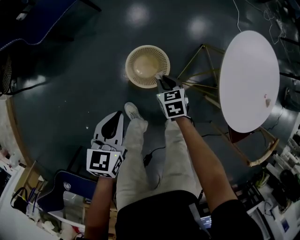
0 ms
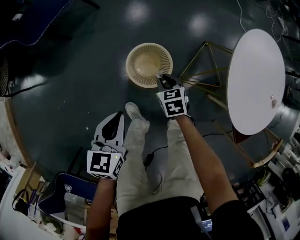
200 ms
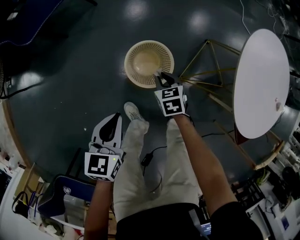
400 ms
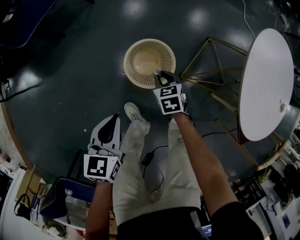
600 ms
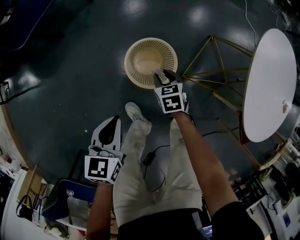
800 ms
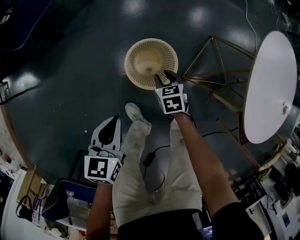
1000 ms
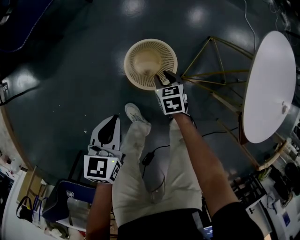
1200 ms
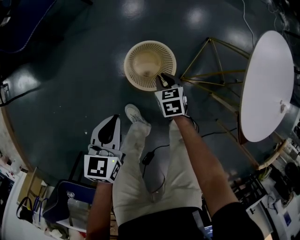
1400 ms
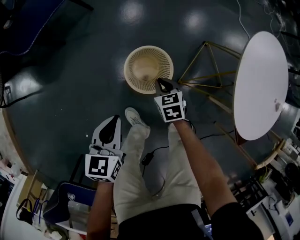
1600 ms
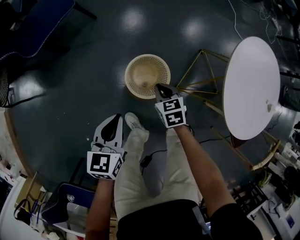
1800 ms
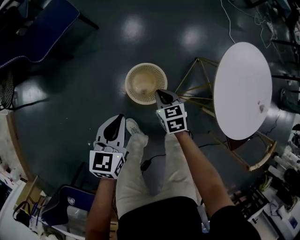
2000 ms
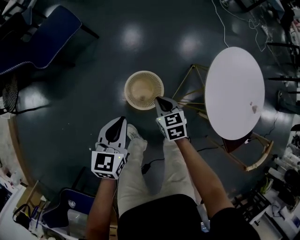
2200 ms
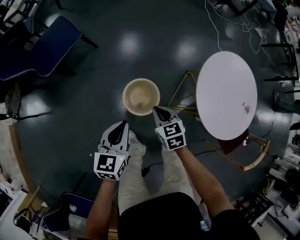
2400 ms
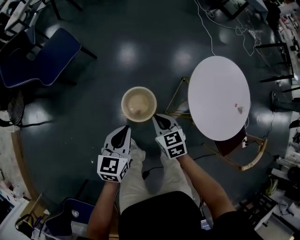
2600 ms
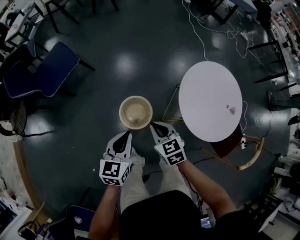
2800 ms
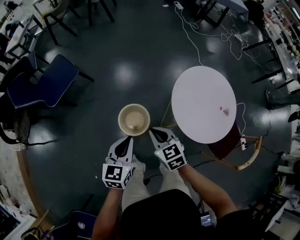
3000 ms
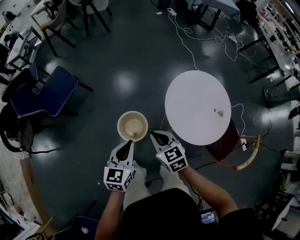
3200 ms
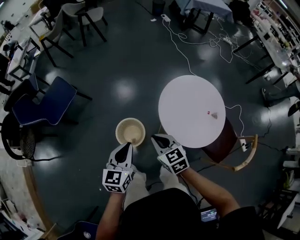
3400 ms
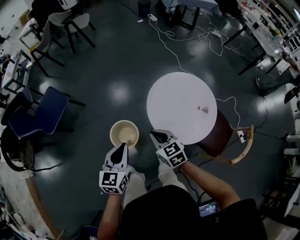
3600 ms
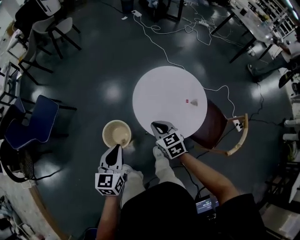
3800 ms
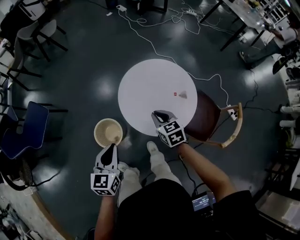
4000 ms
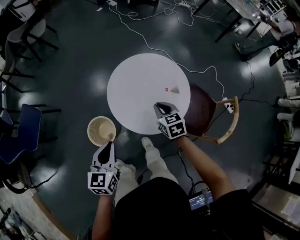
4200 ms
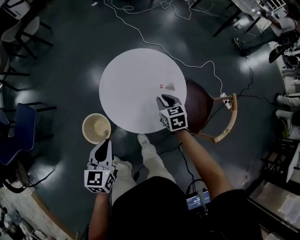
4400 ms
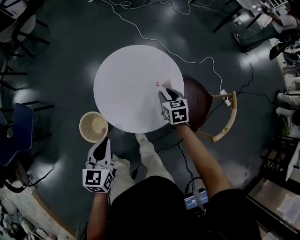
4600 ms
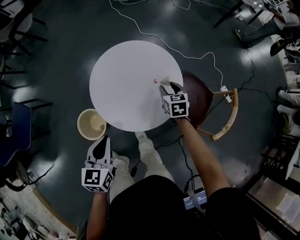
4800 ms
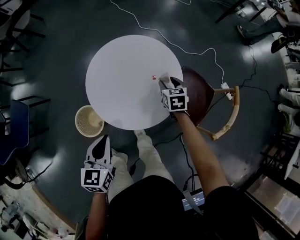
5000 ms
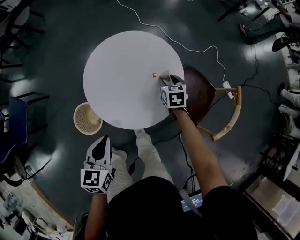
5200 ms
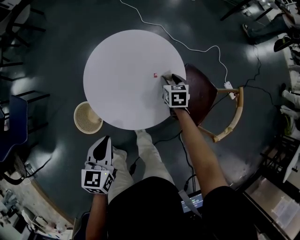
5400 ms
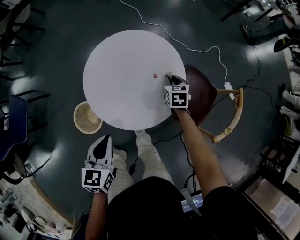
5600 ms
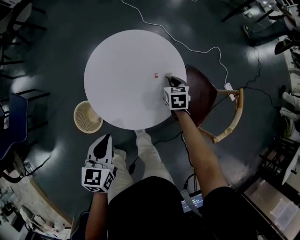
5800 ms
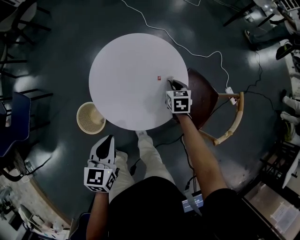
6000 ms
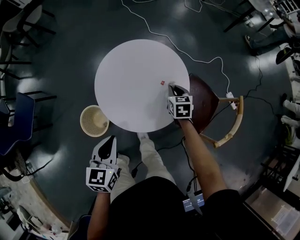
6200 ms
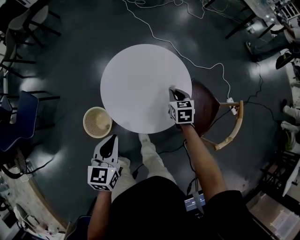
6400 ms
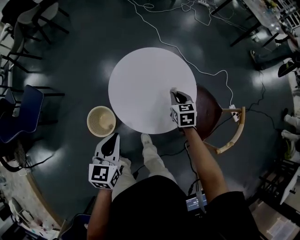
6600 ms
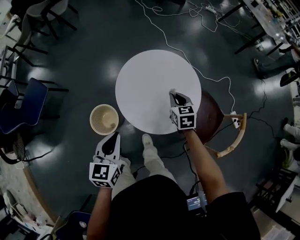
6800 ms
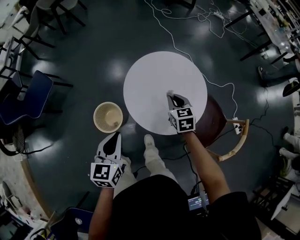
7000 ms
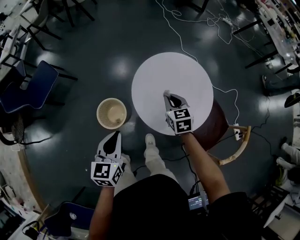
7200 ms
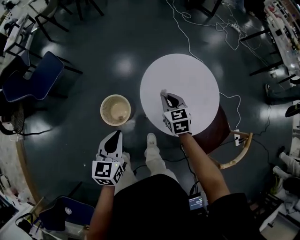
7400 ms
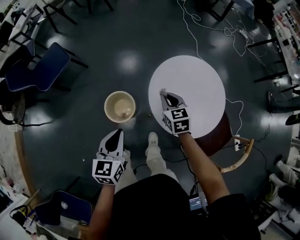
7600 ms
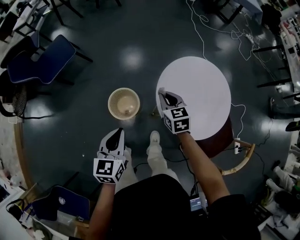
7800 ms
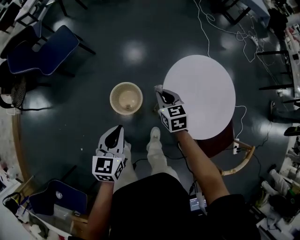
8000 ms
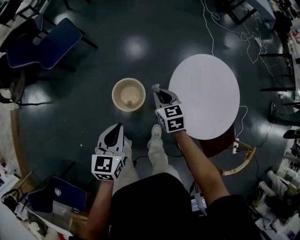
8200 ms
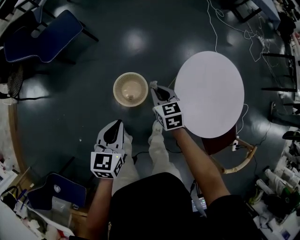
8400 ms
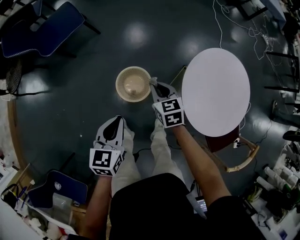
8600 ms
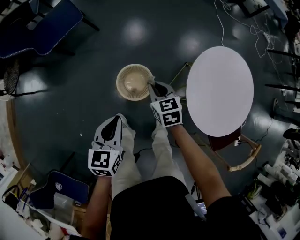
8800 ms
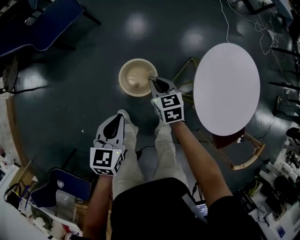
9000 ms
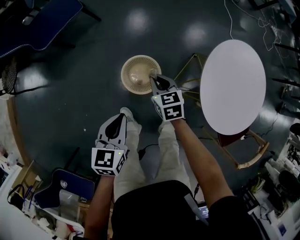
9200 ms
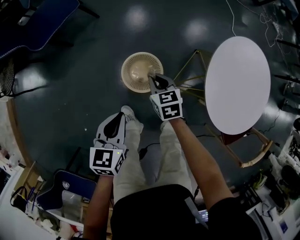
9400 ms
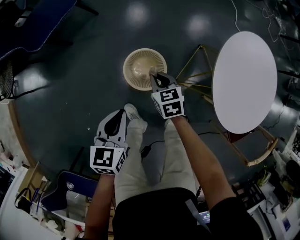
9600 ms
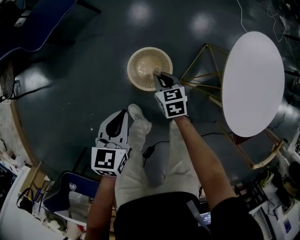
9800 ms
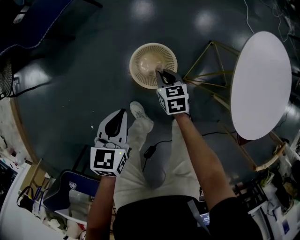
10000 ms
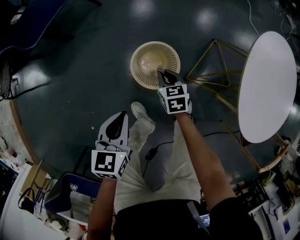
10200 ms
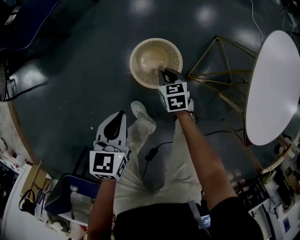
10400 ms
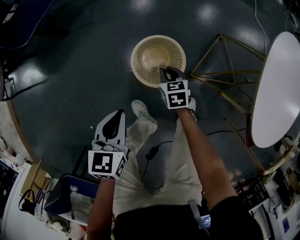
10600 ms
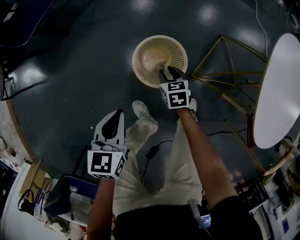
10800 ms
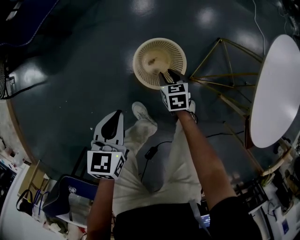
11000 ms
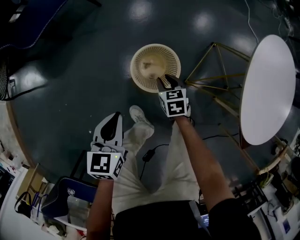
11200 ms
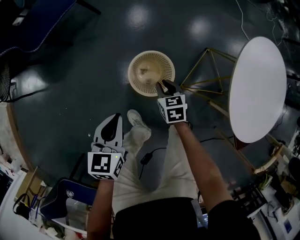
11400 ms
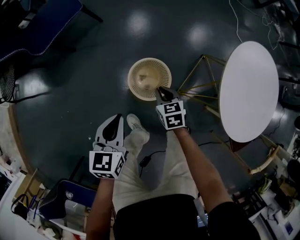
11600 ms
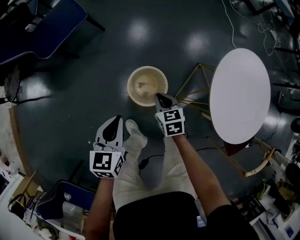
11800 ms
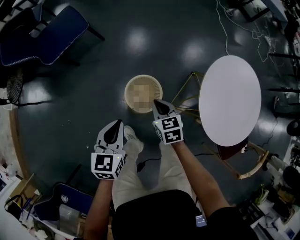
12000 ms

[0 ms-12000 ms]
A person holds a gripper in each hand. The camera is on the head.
0 ms to 1600 ms: Both grippers move downward, some 10 cm.
1600 ms to 3000 ms: Both grippers move upward, approximately 40 cm.
3000 ms to 4400 ms: The left gripper reaches about 10 cm upward, then returns; the right gripper ends up roughly 50 cm from where it was, and changes its angle by approximately 40 degrees.
4400 ms to 6000 ms: The left gripper goes roughly 10 cm to the right and downward, while the right gripper goes approximately 15 cm downward, to the right and forward, and opens and closes again.
6000 ms to 7600 ms: The left gripper moves some 25 cm, and changes its angle by approximately 30 degrees. Meanwhile the right gripper ends up about 40 cm from where it was, and swivels some 40 degrees.
7600 ms to 9000 ms: The two grippers go some 30 cm to the left and downward.
9000 ms to 10400 ms: The two grippers go some 25 cm downward.
10400 ms to 12000 ms: The grippers both shift upward by about 25 cm. The right gripper opens, then closes again.

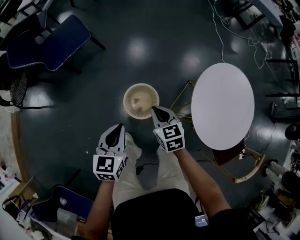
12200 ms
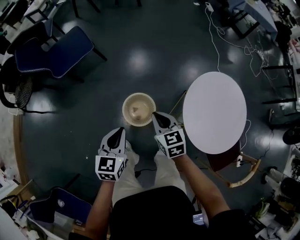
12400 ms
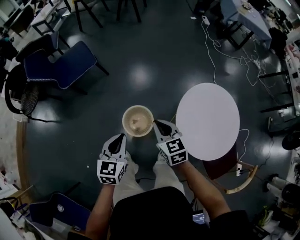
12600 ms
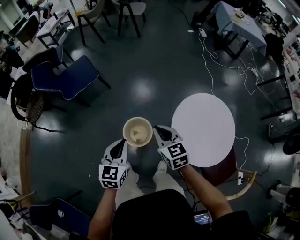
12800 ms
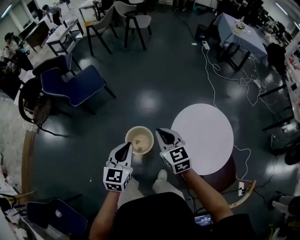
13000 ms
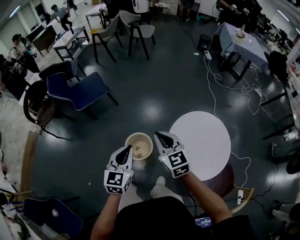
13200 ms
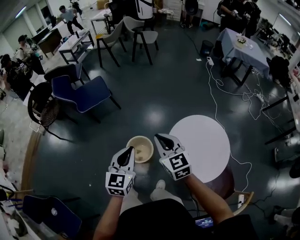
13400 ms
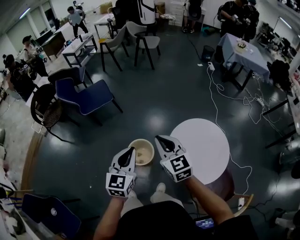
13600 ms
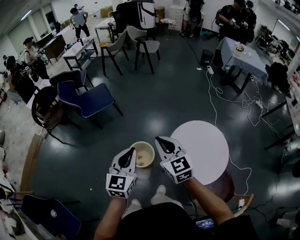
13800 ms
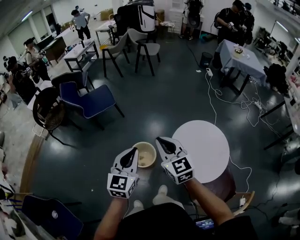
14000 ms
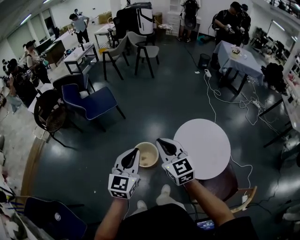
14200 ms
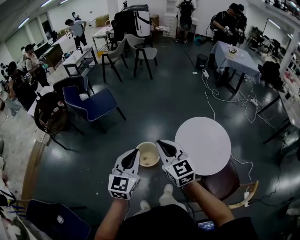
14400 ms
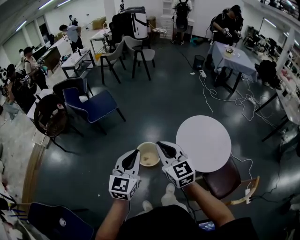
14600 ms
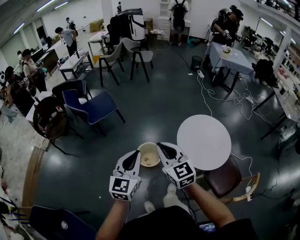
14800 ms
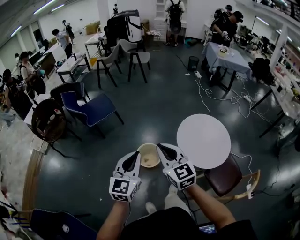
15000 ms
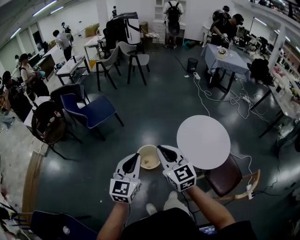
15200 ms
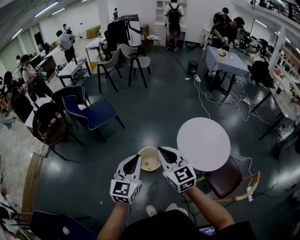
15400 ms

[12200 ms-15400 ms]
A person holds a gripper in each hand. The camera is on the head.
12200 ms to 13800 ms: The right gripper shifts some 40 cm upward, and swivels some 30 degrees, while the left gripper is displaced upward, to the right and backward by approximately 40 cm, and turns by roughly 30 degrees.
13800 ms to 15400 ms: The two grippers go about 25 cm to the left and backward.

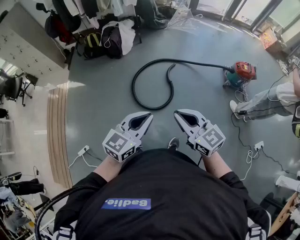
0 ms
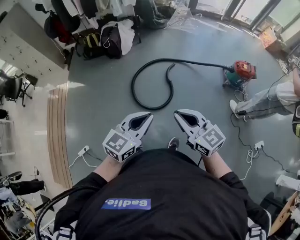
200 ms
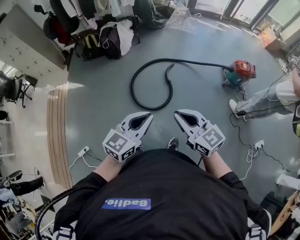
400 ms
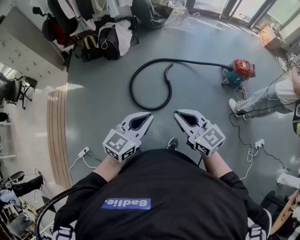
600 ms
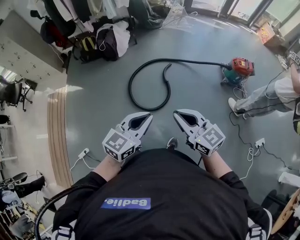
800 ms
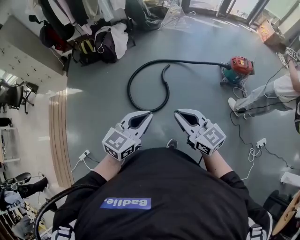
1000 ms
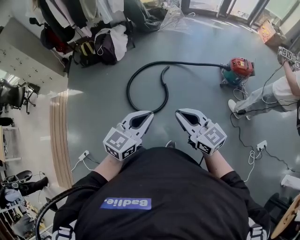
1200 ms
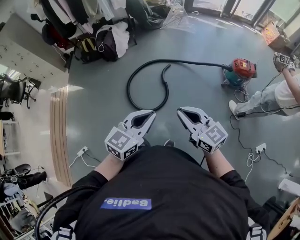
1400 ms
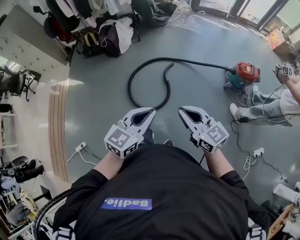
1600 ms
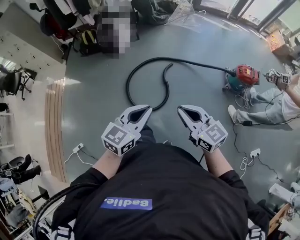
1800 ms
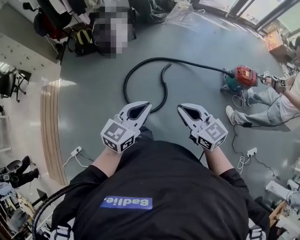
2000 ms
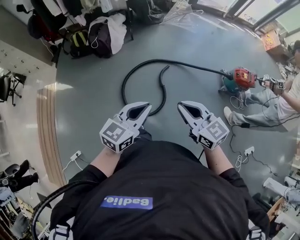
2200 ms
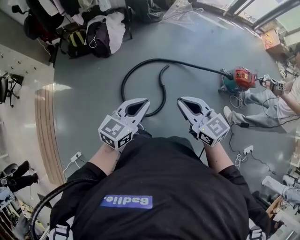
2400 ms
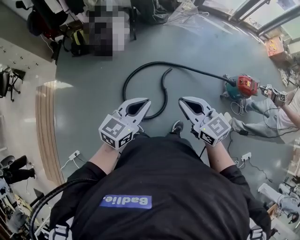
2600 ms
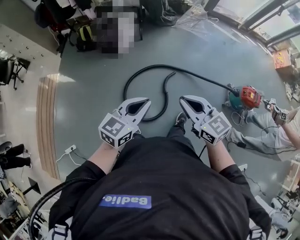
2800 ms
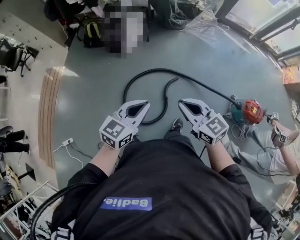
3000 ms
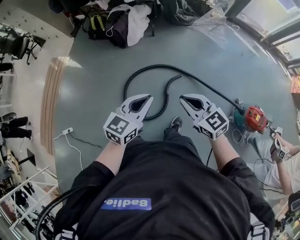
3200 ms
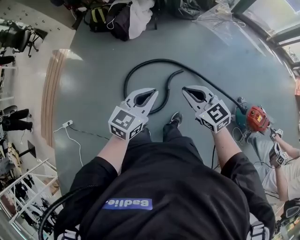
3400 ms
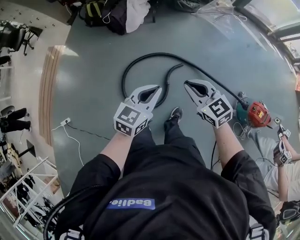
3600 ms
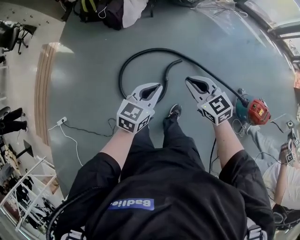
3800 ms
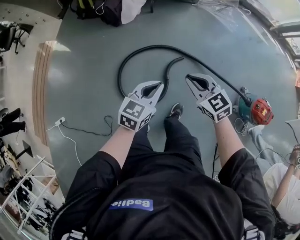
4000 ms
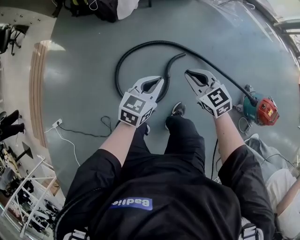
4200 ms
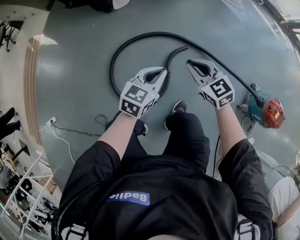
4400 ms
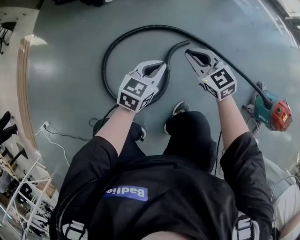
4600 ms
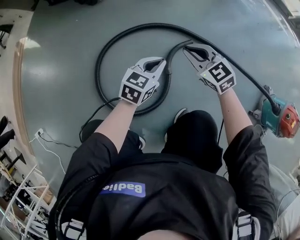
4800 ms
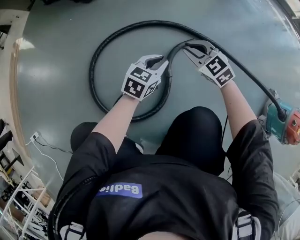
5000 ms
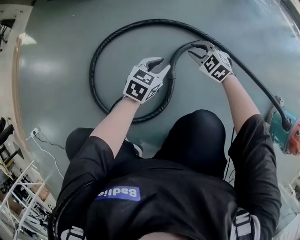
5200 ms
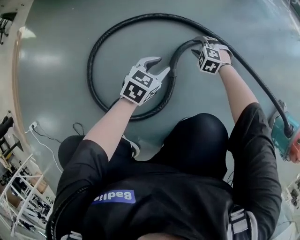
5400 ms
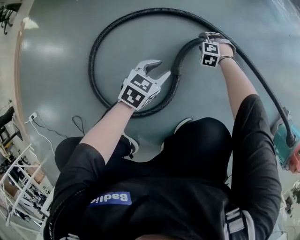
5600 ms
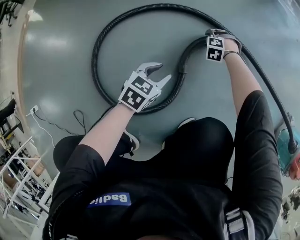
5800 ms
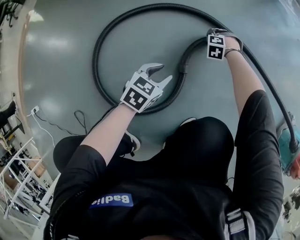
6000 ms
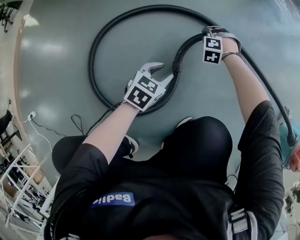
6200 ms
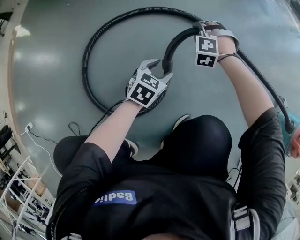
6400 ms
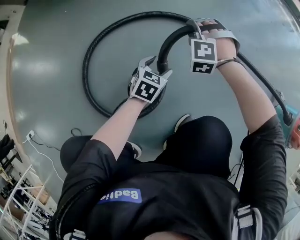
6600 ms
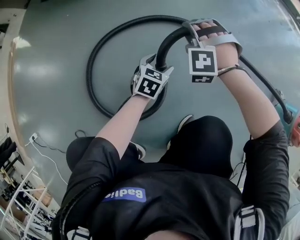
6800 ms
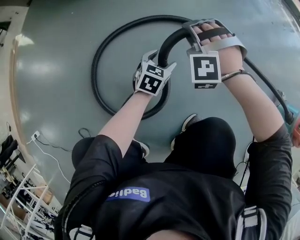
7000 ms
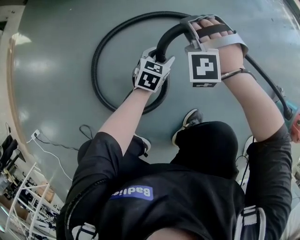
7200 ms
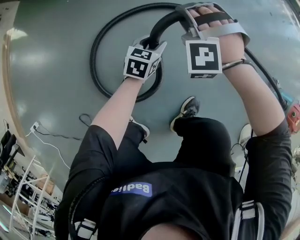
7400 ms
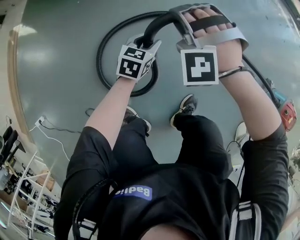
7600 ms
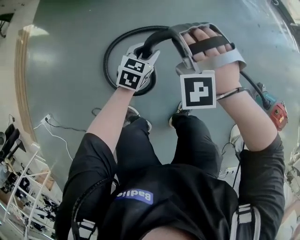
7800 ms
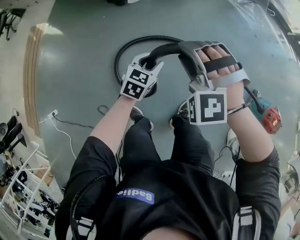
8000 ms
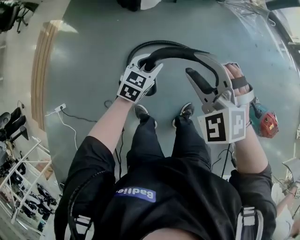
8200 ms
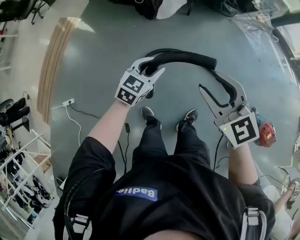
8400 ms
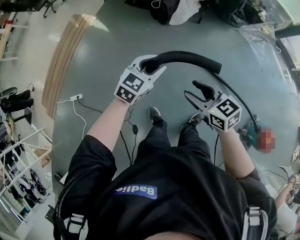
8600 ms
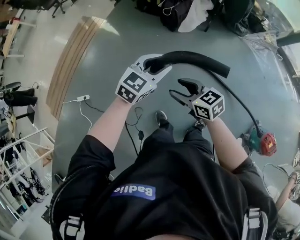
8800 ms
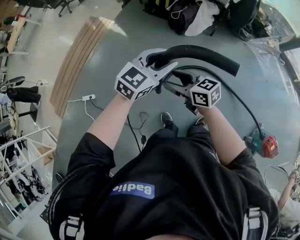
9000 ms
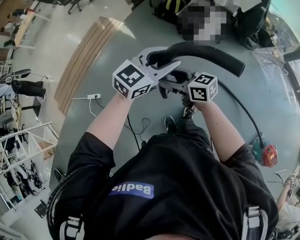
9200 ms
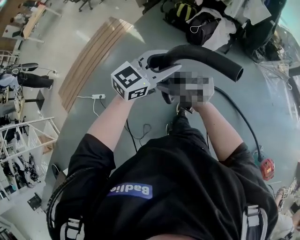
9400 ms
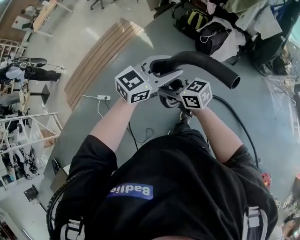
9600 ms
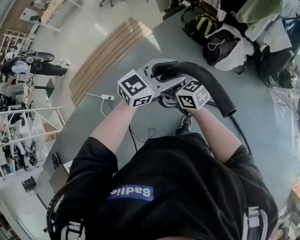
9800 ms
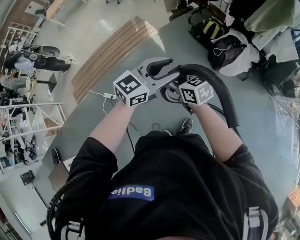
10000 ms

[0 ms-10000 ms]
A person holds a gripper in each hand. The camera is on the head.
0 ms to 1400 ms: Both grippers travel together to the right, some 15 cm.
1400 ms to 2800 ms: Both grippers travel together forward, roughly 30 cm.
2800 ms to 4200 ms: The left gripper travels downward, to the right and forward by about 35 cm, and turns by some 20 degrees. The right gripper is displaced downward and forward by roughly 35 cm, and turns by some 20 degrees.
4200 ms to 5800 ms: Both grippers travel together downward, about 60 cm. The left gripper changes its angle by about 20 degrees, and opens its fingers. The right gripper tips its fingers downward by approximately 50 degrees, and opens up.
5800 ms to 7200 ms: The right gripper goes about 35 cm upward, and changes its angle by about 30 degrees, while the left gripper ends up roughly 10 cm from where it was.
7200 ms to 8600 ms: Both grippers move upward, some 60 cm. The right gripper twists approximately 80 degrees clockwise, seen from behind.
8600 ms to 10000 ms: The right gripper moves some 40 cm, and rotates about 20 degrees; the left gripper moves about 35 cm, and rotates approximately 20 degrees.
